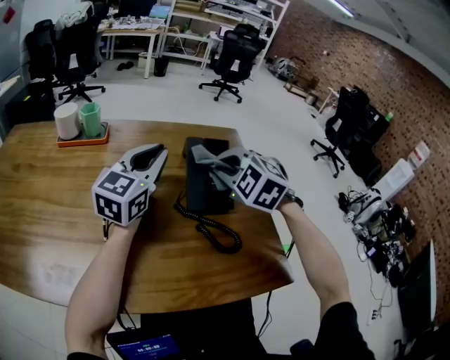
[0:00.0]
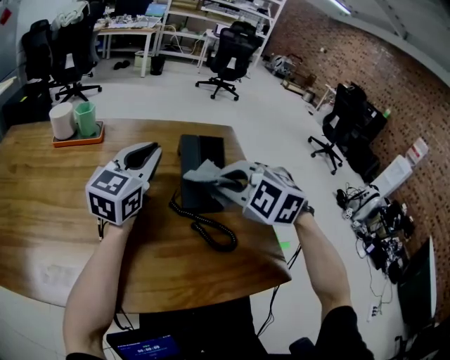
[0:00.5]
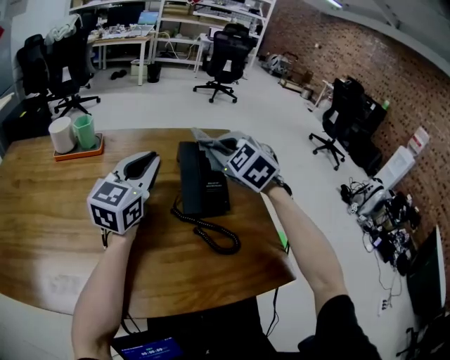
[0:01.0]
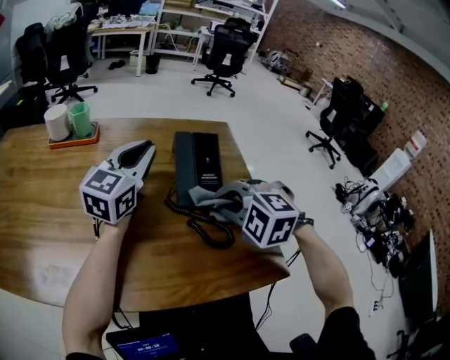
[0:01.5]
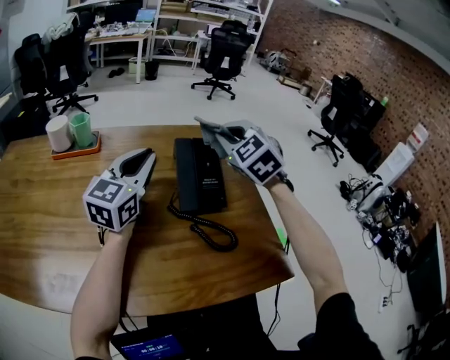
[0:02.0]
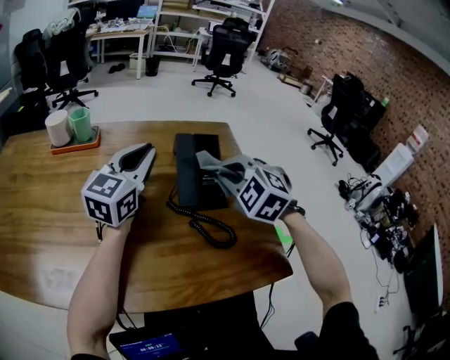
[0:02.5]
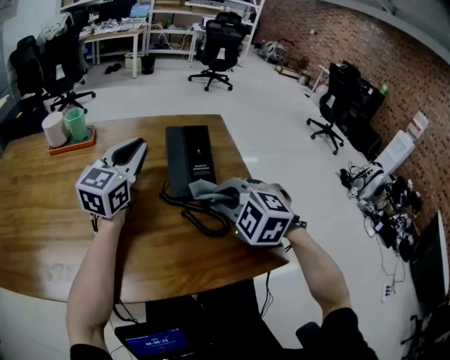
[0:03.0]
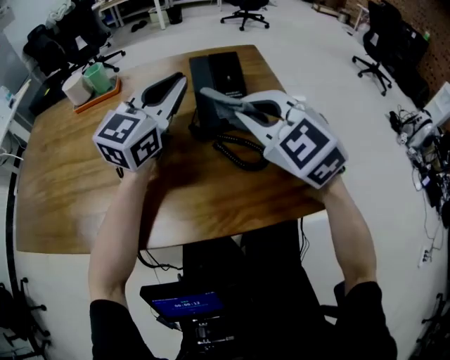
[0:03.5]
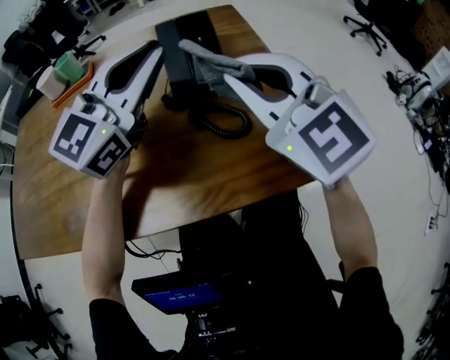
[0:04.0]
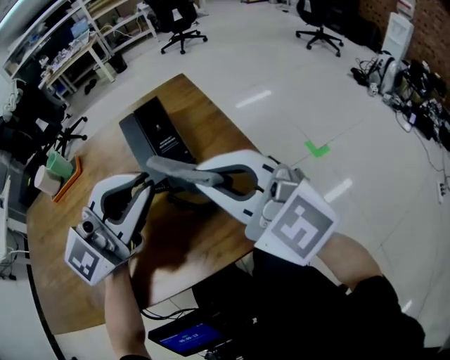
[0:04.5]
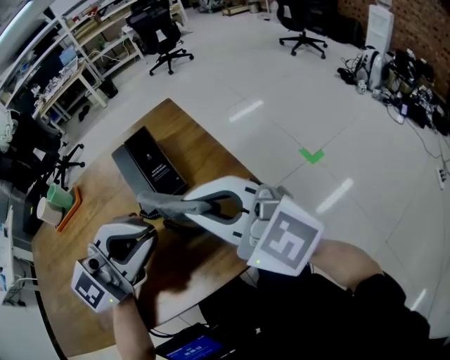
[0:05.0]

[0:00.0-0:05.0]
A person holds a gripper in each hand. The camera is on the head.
0:00.0 to 0:02.5: The right gripper swings forward and backward, some 15 cm each way, with 4 reversals.
0:02.5 to 0:05.0: The left gripper ends up roughly 30 cm from where it was, and turns by some 60 degrees, while the right gripper moves about 20 cm, and points its fingers approximately 40 degrees further upward.

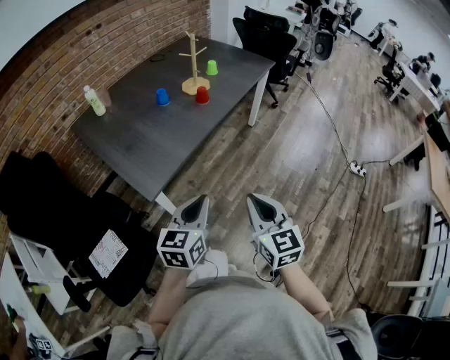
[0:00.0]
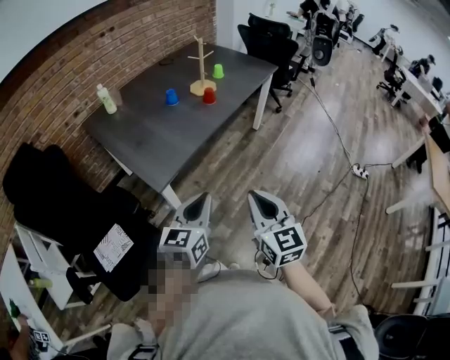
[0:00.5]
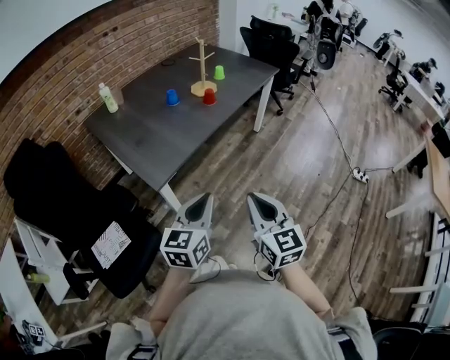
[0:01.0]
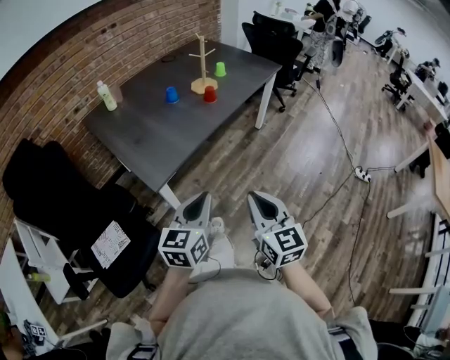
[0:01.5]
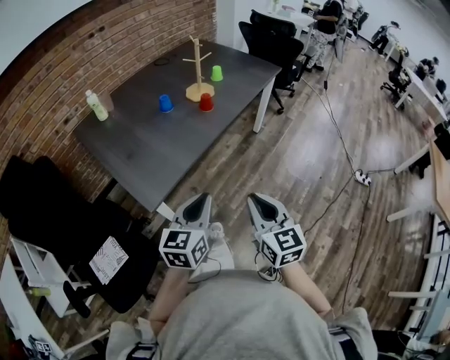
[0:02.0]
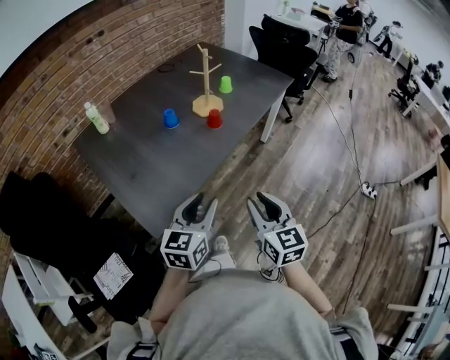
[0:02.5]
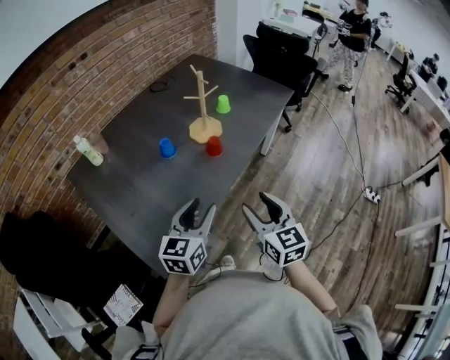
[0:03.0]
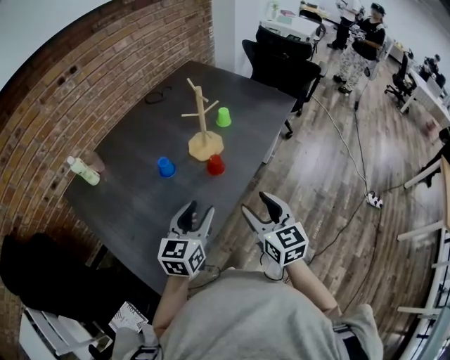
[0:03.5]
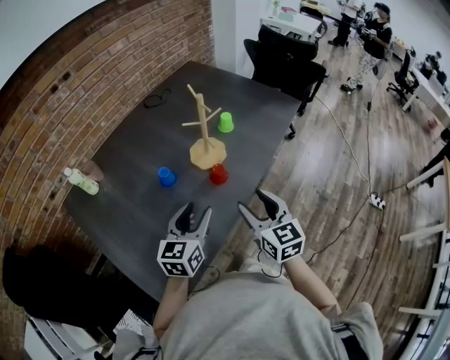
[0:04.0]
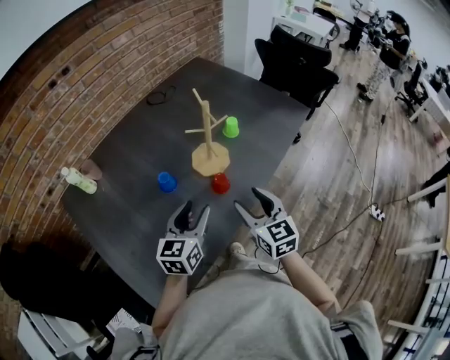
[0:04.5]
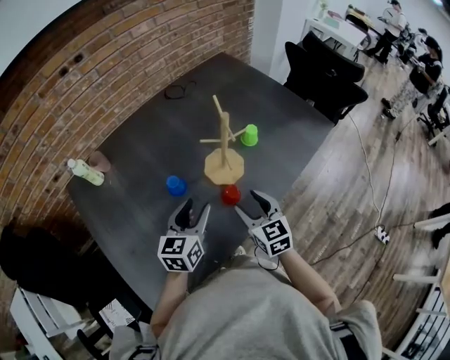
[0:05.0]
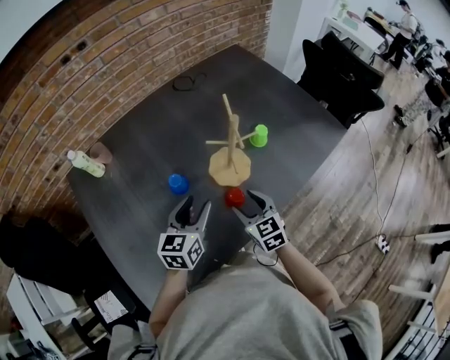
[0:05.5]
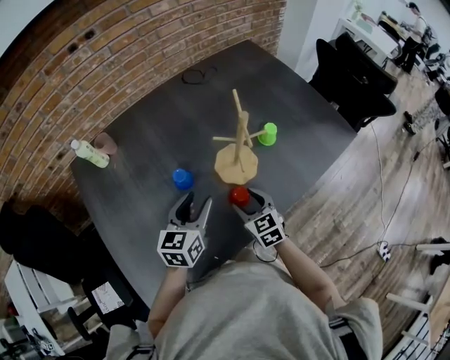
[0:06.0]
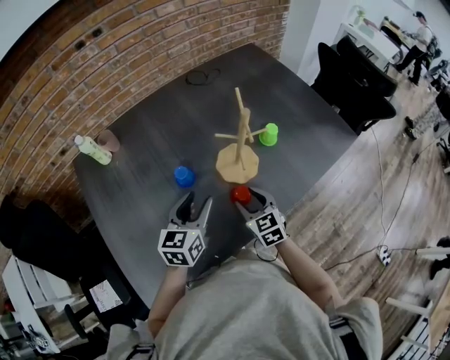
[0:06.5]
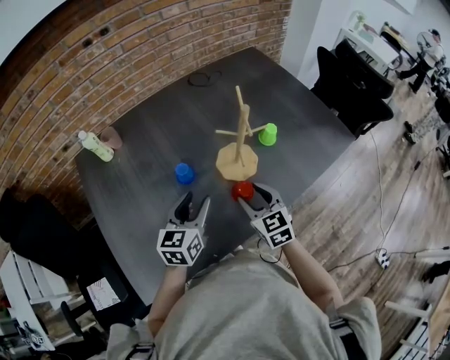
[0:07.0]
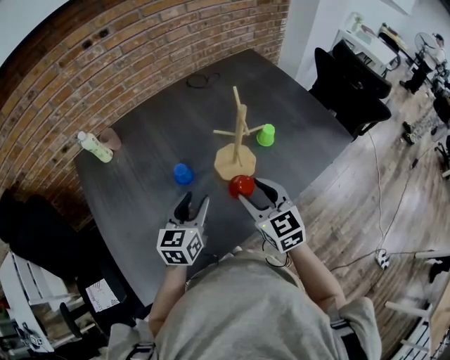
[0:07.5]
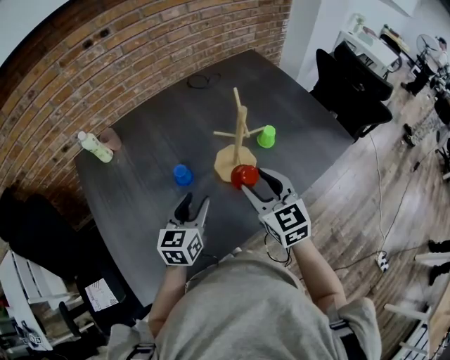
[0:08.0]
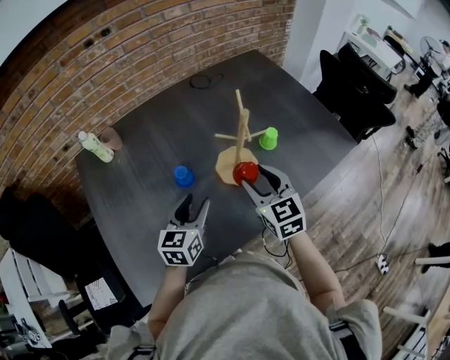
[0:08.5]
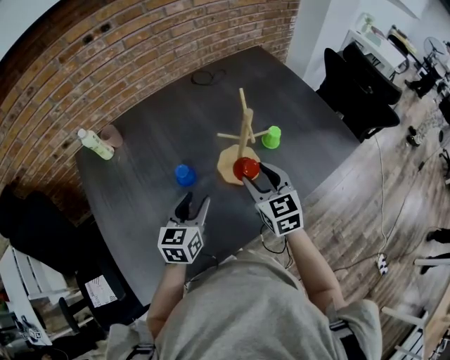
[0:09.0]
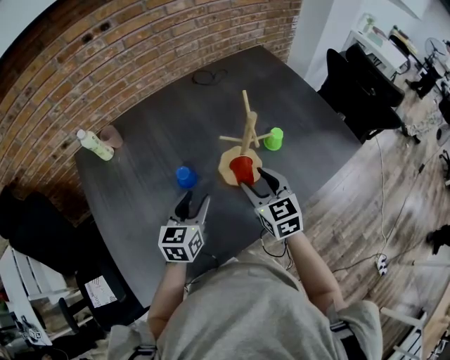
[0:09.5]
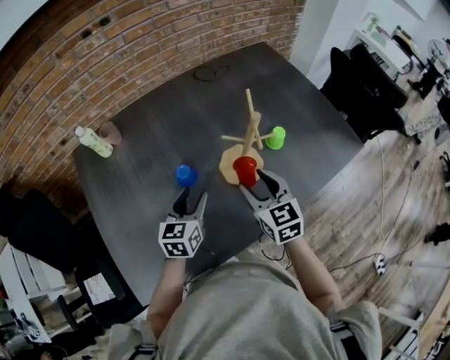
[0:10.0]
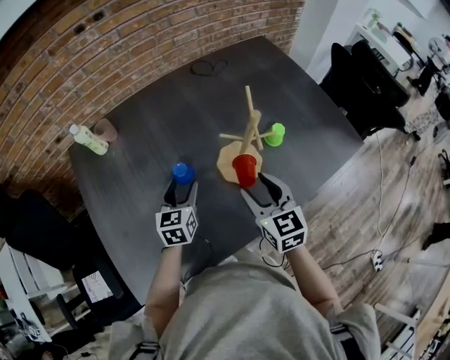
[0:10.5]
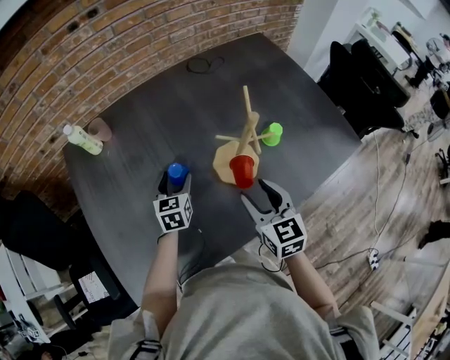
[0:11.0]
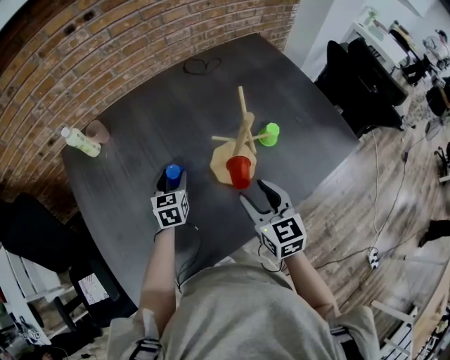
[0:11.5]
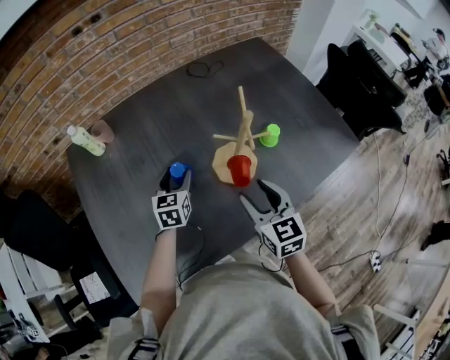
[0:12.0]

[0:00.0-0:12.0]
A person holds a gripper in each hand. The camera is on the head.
0:00.0 to 0:02.0: Both grippers travel together forward, about 5 cm.
0:02.0 to 0:04.0: Both grippers move forward, about 40 cm. The right gripper opens its fingers; the left gripper opens.
0:04.0 to 0:06.0: The right gripper heads forward and downward, covering about 25 cm, and changes its angle by roughly 30 degrees; the left gripper shifts roughly 15 cm forward, and swivels some 20 degrees.
0:06.0 to 0:08.0: The right gripper heads upward, covering roughly 15 cm.
0:08.0 to 0:10.0: The right gripper goes about 5 cm downward; the left gripper changes place by roughly 5 cm.
0:10.0 to 0:12.0: The left gripper shifts about 10 cm forward.

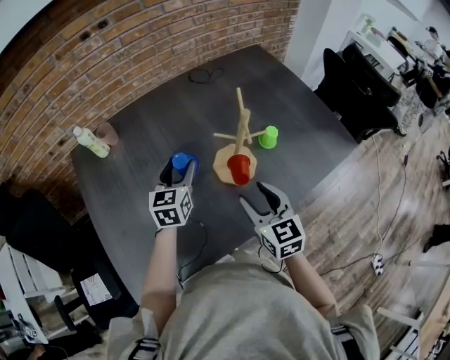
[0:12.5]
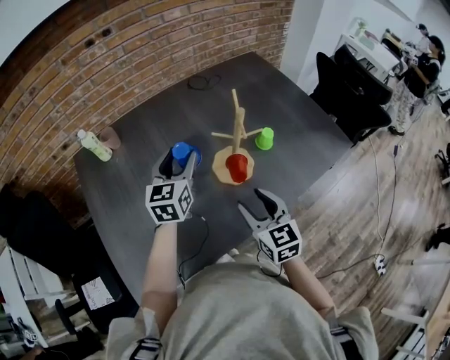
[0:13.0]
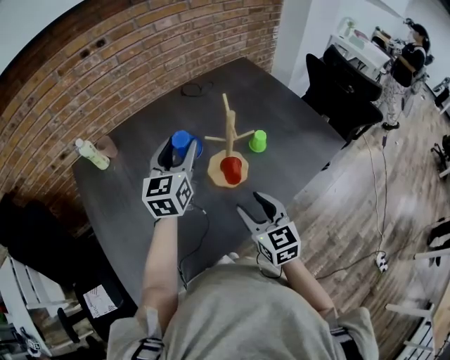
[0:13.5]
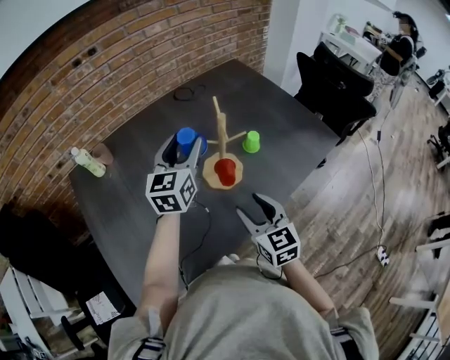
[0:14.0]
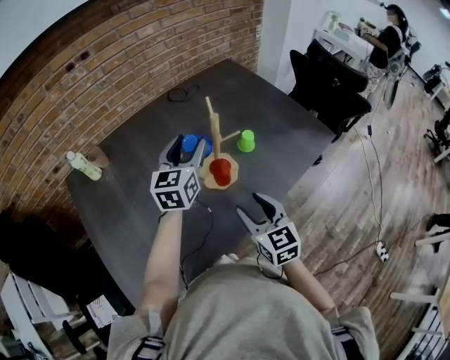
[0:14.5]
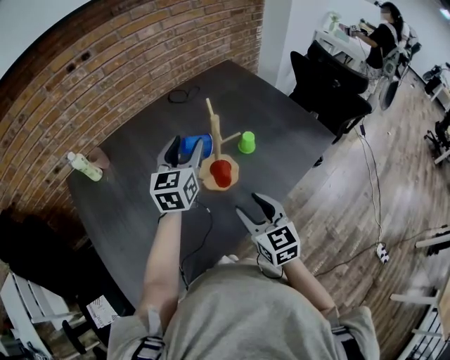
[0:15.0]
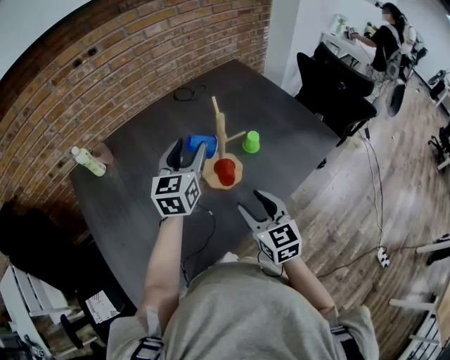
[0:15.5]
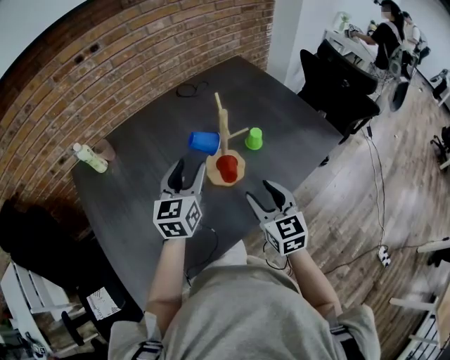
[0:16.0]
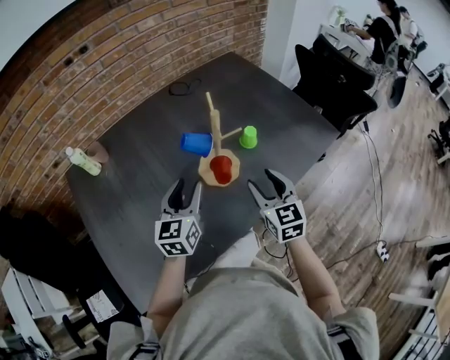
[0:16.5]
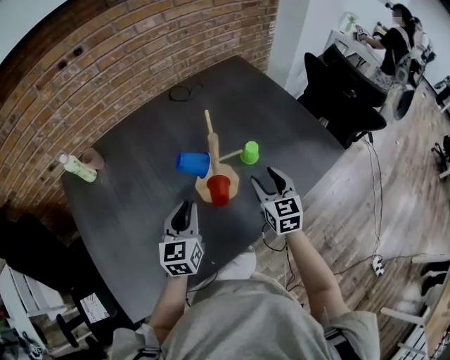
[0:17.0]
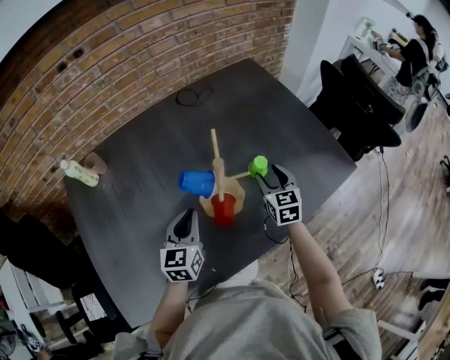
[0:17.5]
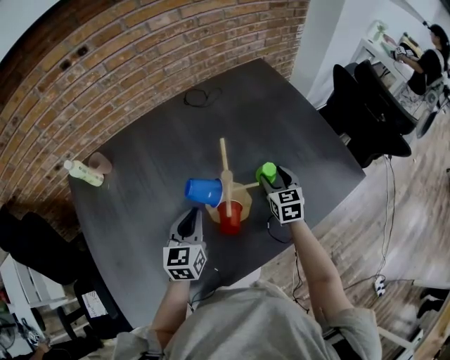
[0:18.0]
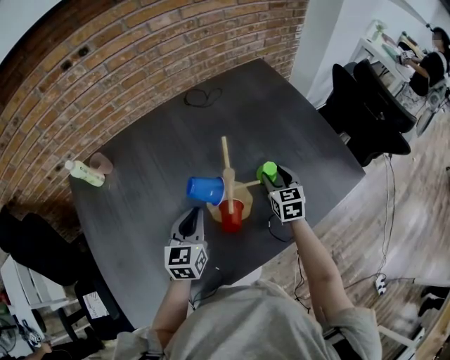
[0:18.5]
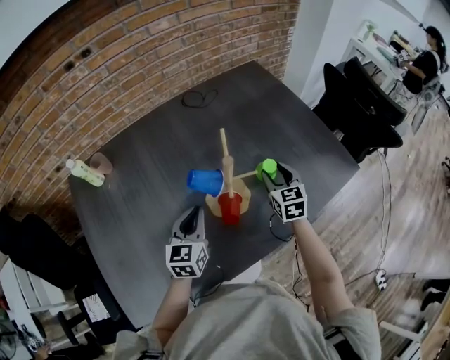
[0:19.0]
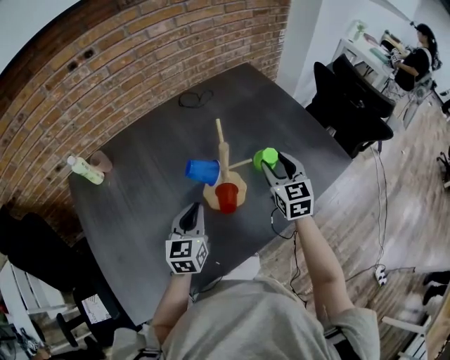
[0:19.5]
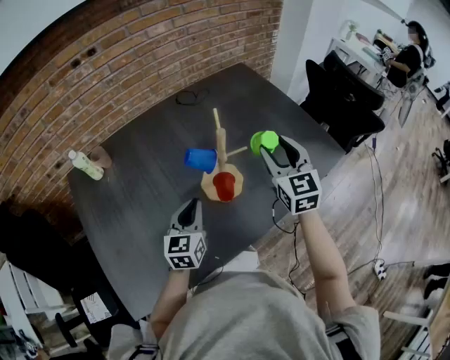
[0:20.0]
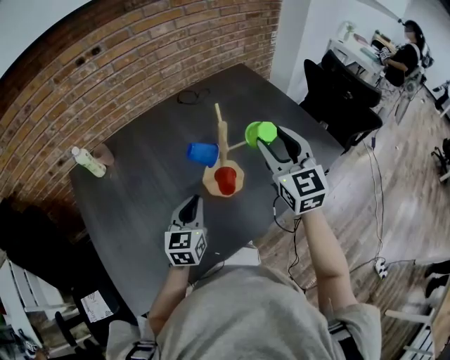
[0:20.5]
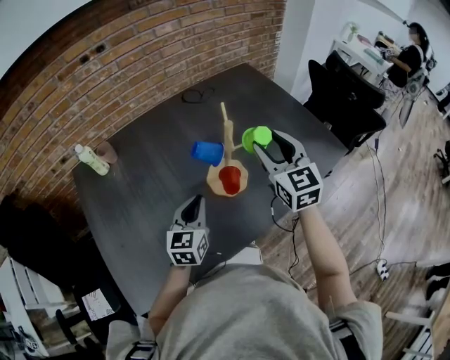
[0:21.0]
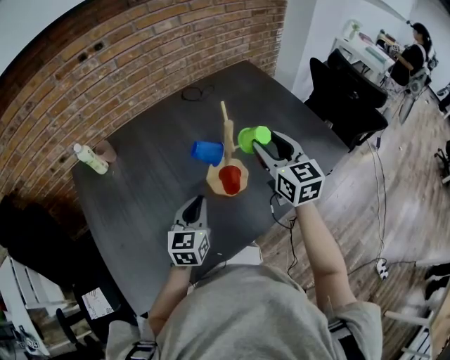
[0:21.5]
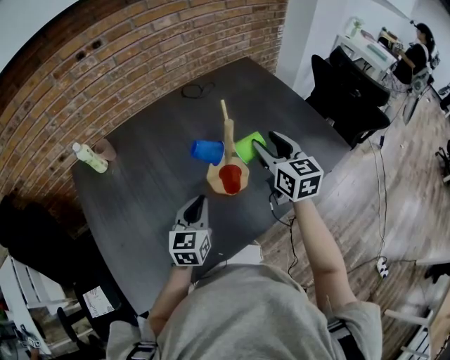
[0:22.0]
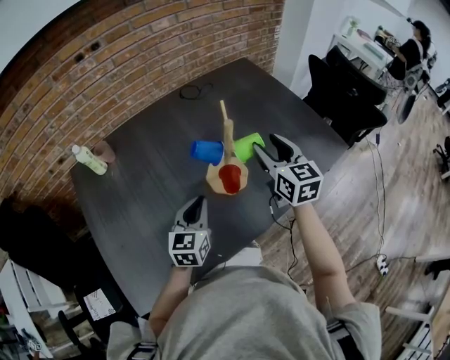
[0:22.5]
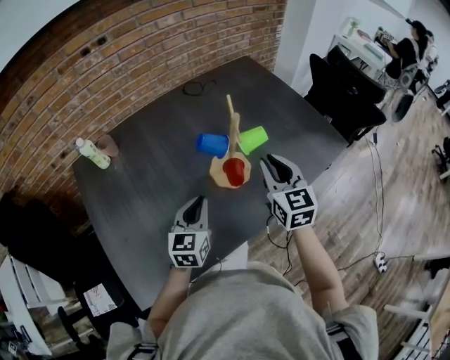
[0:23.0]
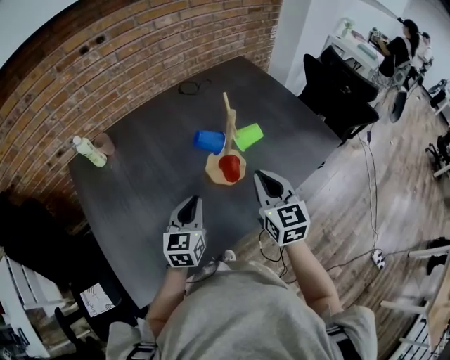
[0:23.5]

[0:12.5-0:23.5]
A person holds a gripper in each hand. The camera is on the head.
0:12.5 to 0:14.5: The right gripper travels backward by some 5 cm. The left gripper heads upward and to the right, covering about 15 cm.
0:14.5 to 0:16.0: The left gripper is displaced backward by about 5 cm.
0:16.0 to 0:18.0: The right gripper heads forward and downward, covering approximately 30 cm. Meanwhile the left gripper moves downward, some 10 cm, and closes.
0:18.0 to 0:20.0: The left gripper heads backward, covering some 5 cm. Meanwhile the right gripper travels upward and backward by approximately 25 cm, and swivels about 20 degrees.
0:21.5 to 0:23.5: The right gripper shifts about 10 cm backward, and closes up.
